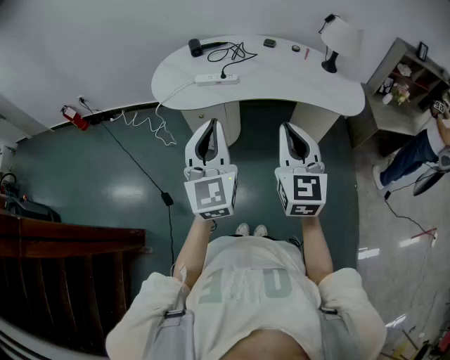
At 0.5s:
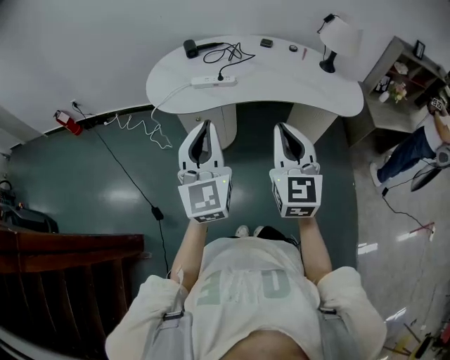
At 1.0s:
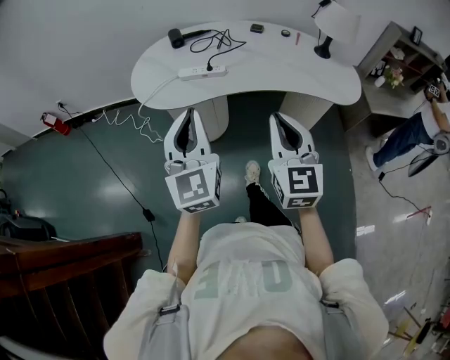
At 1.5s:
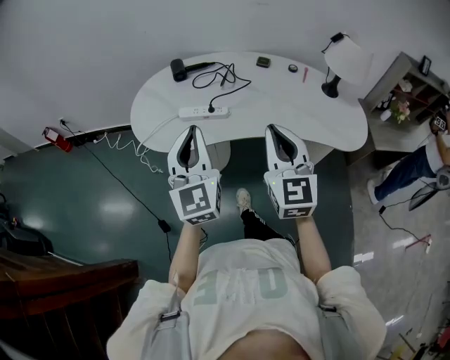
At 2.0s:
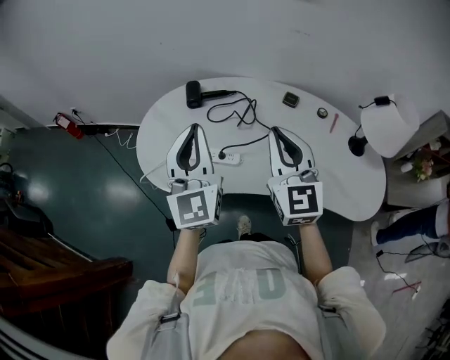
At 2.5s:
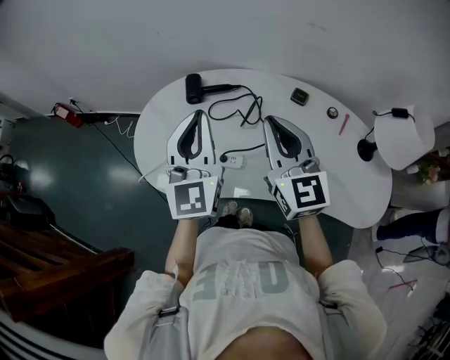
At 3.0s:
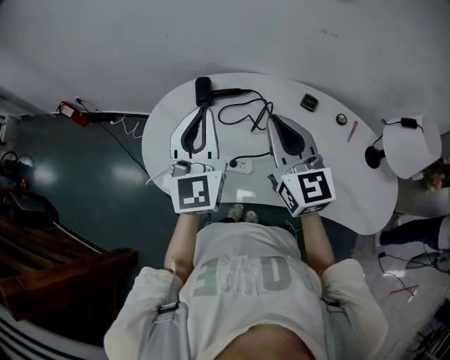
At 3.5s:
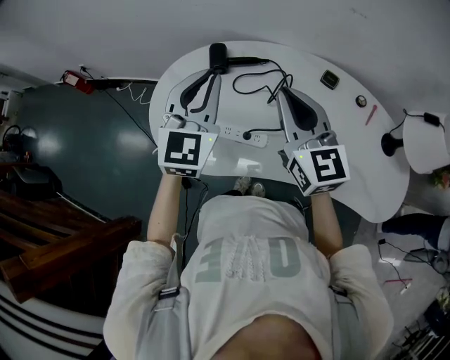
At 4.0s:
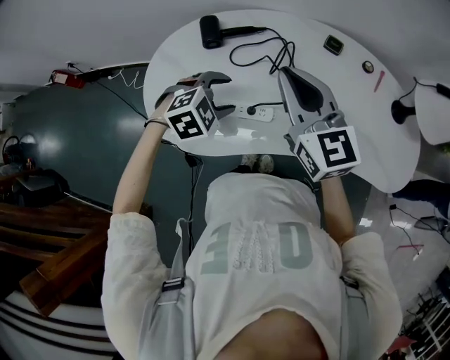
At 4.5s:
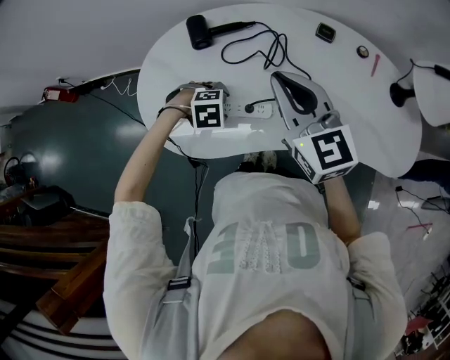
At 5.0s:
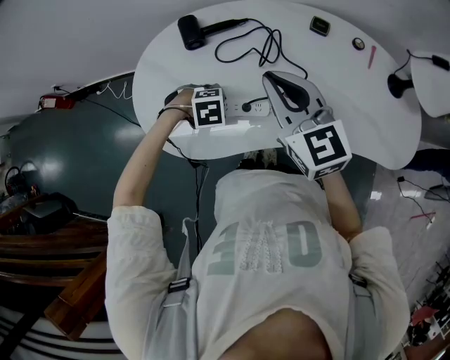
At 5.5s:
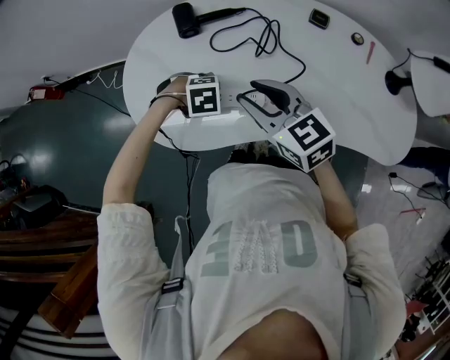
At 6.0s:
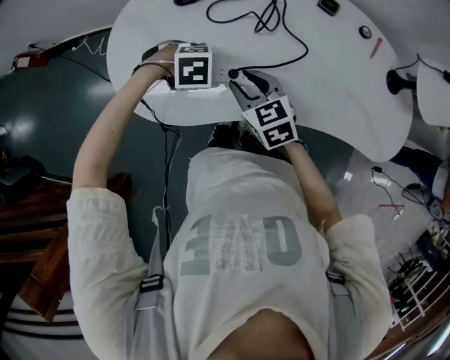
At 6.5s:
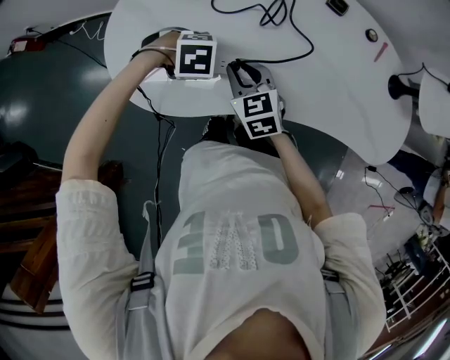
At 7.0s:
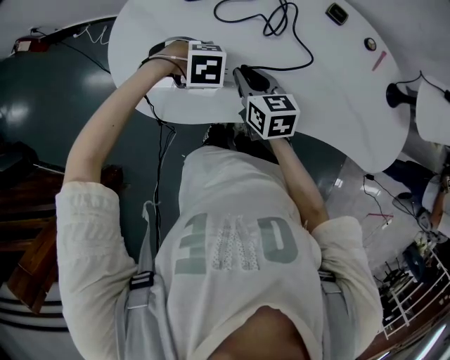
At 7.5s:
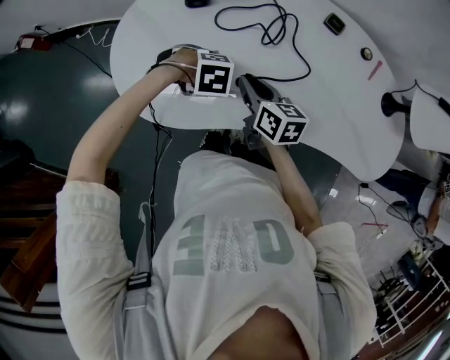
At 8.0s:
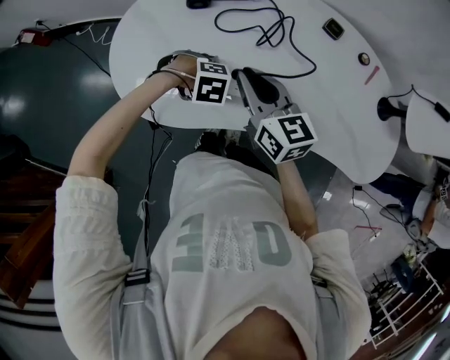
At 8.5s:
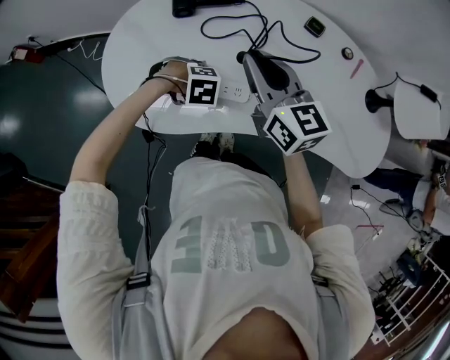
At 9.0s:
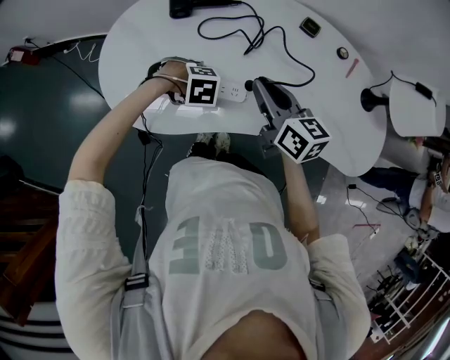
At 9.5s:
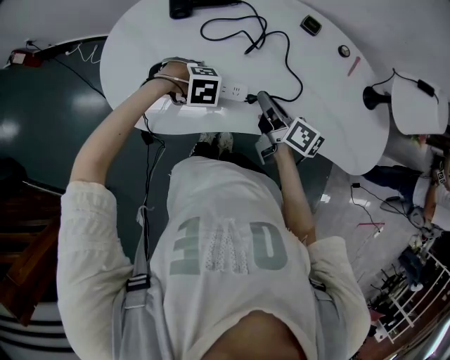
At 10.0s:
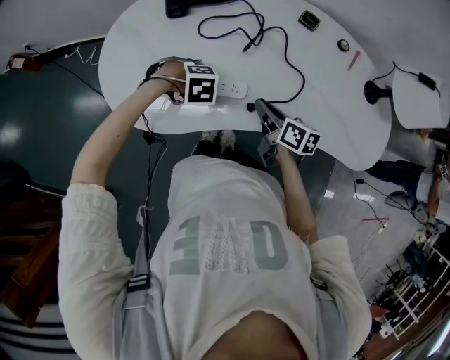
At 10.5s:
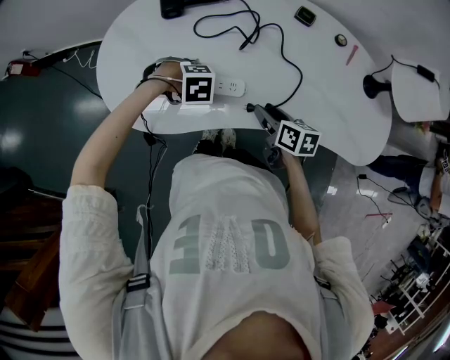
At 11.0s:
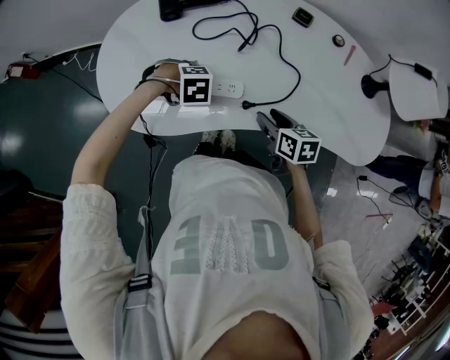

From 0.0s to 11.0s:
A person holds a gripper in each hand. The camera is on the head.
From 0.0s to 2.0s: Both grippers travel together forward, roughly 40 cm.
From 2.0s to 3.5s: The left gripper shifts some 15 cm forward, and swivels about 30 degrees, while the right gripper is displaced forward and to the left by some 10 cm.
From 3.5s to 5.5s: The left gripper moves downward, some 35 cm, points its fingers approximately 70 degrees further downward, and opens its fingers. The right gripper is displaced downward by about 15 cm, changes its angle by some 30 degrees, and opens up.
From 5.5s to 7.5s: The right gripper heads downward, covering about 15 cm, rotates about 40 degrees, and closes up.
From 7.5s to 9.0s: The right gripper heads upward, covering about 10 cm.
From 9.0s to 11.0s: The right gripper heads downward, covering some 15 cm, changes its angle by approximately 30 degrees, and opens up.

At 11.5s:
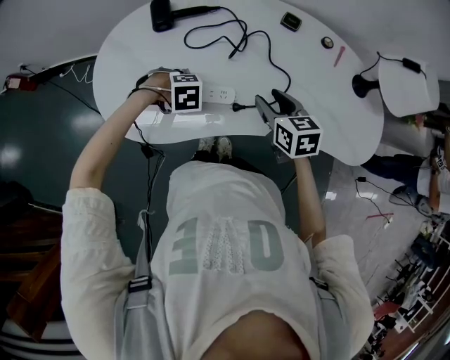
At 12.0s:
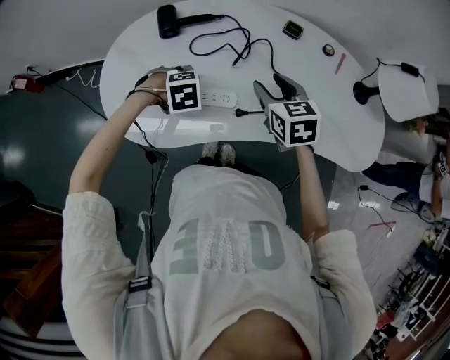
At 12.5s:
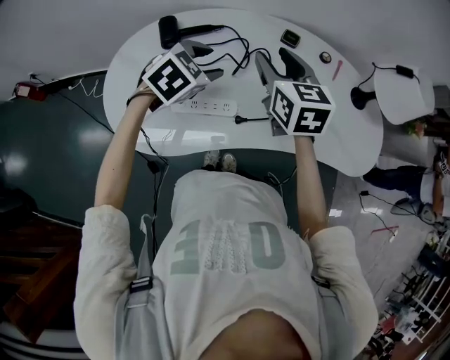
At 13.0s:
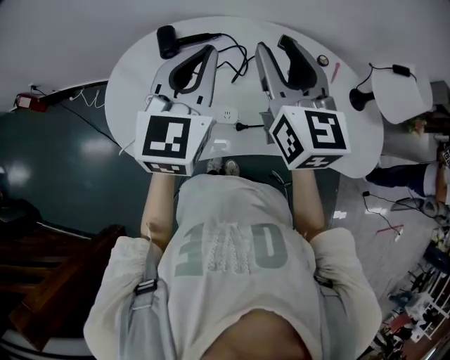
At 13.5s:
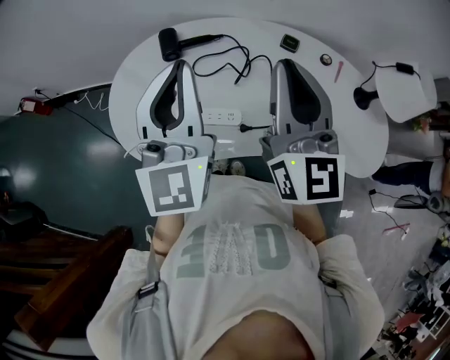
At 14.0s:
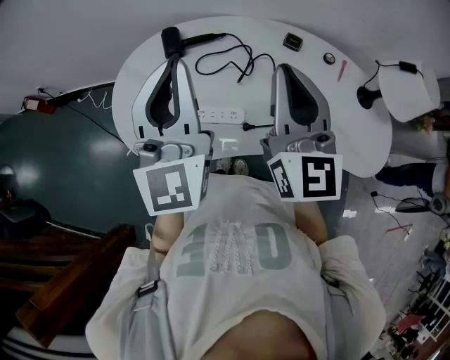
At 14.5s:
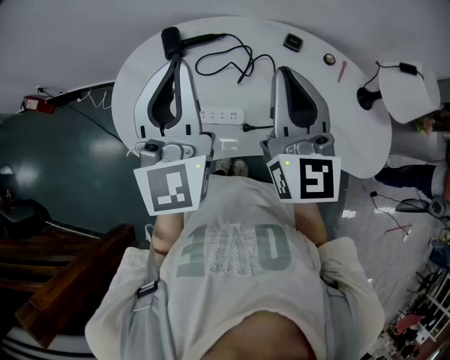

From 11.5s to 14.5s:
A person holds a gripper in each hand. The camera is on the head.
From 11.5s to 13.0s: The two grippers go roughly 30 cm upward. The right gripper angles its fingers upward, by roughly 40 degrees; the left gripper tips its fingers upward by roughly 80 degrees, and closes its fingers.
From 13.0s to 14.5s: The left gripper moves approximately 5 cm, and swivels about 20 degrees, while the right gripper goes some 5 cm backward, and closes its fingers.

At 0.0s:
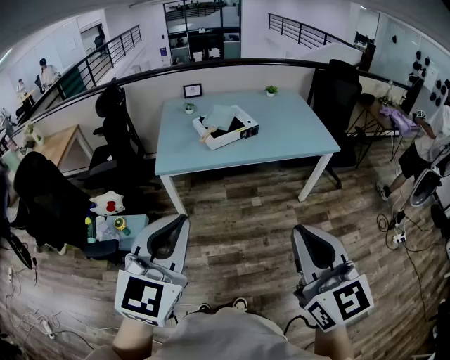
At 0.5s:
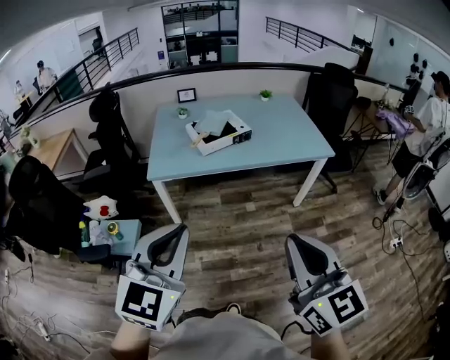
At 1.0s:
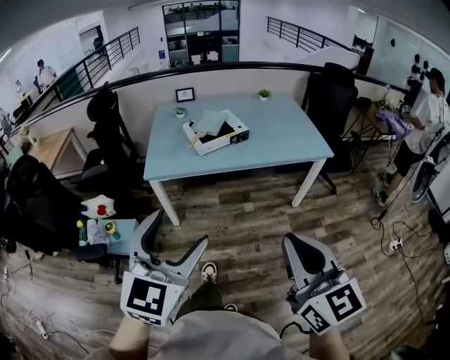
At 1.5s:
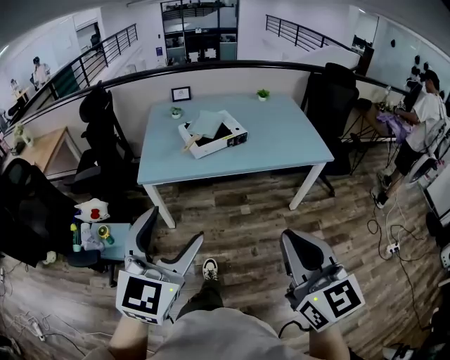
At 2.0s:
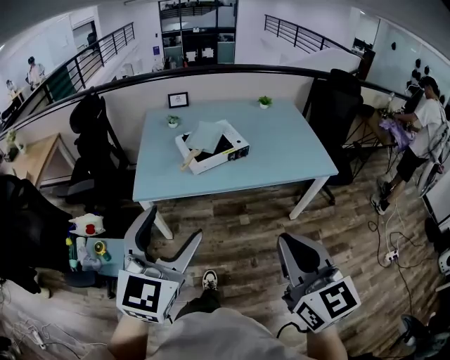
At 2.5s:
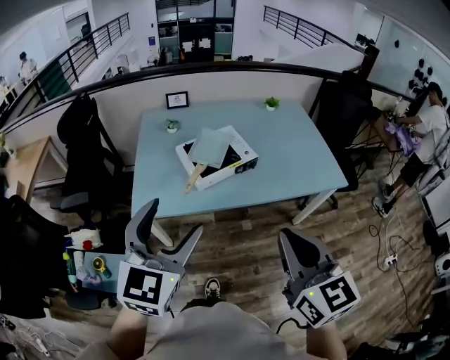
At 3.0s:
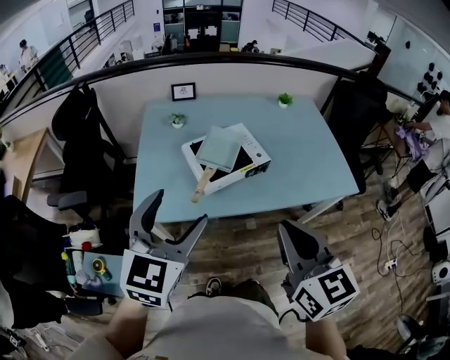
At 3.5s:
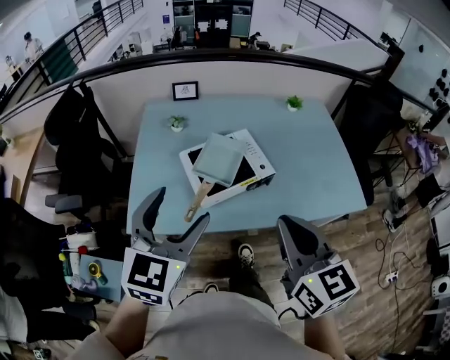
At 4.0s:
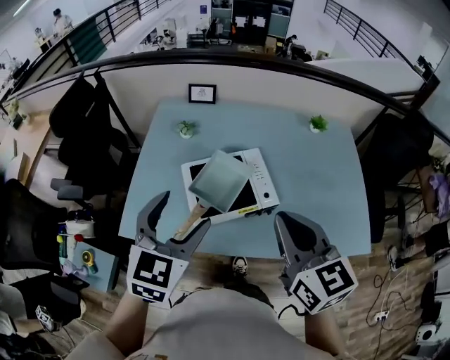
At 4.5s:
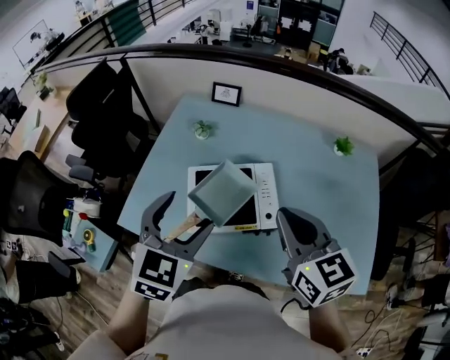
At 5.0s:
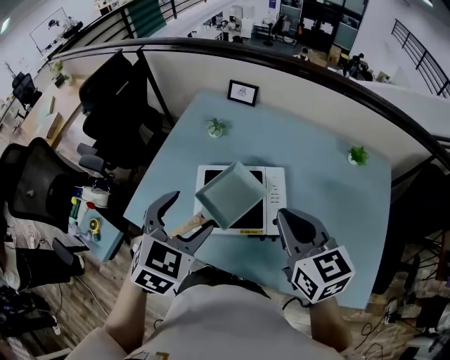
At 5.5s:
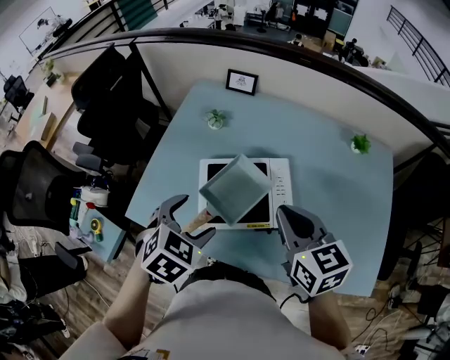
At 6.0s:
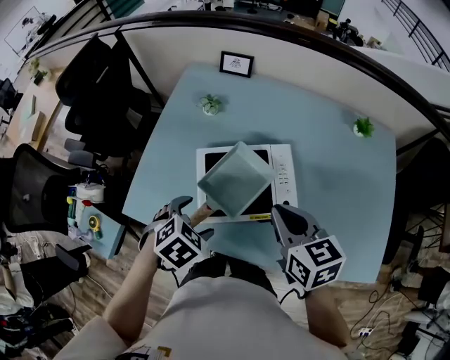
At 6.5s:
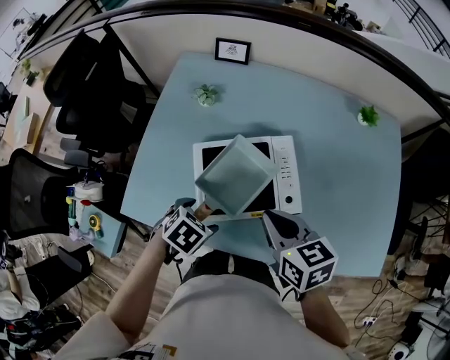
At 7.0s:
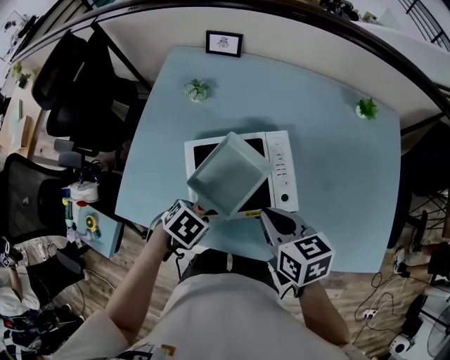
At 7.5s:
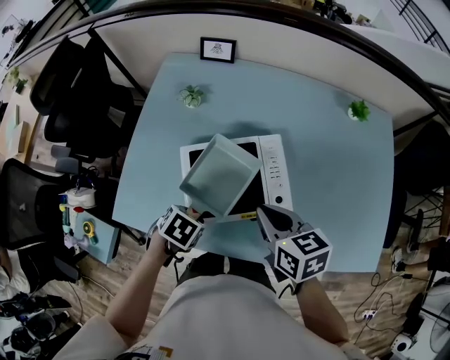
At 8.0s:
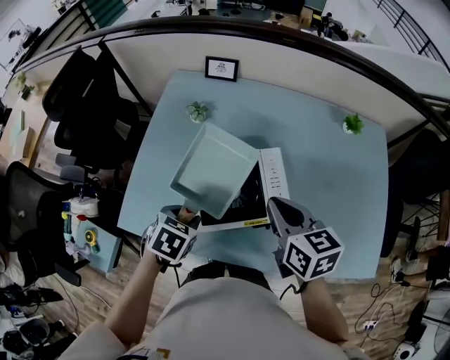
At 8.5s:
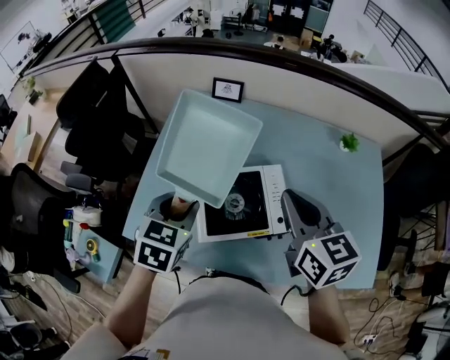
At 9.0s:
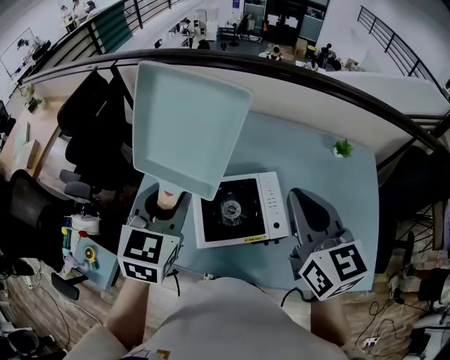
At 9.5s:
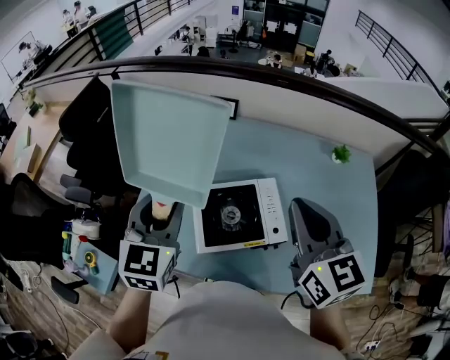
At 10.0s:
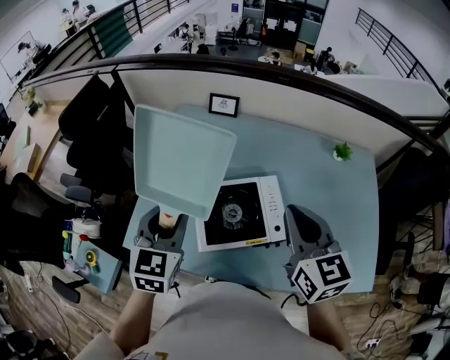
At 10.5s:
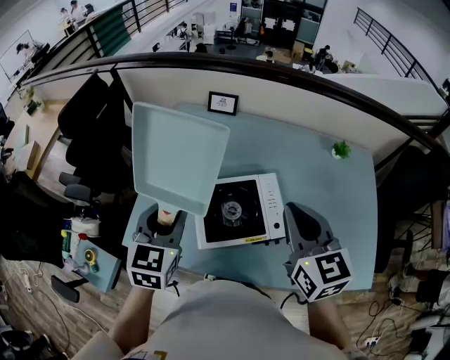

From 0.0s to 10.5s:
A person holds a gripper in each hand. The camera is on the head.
From 0.0s to 2.0s: Both grippers travel together forward, roughly 20 cm. The left gripper opens its fingers.
From 2.0s to 4.0s: The pair of grippers is taken forward, about 50 cm.
From 4.0s to 6.5s: The right gripper moves downward and forward, some 20 cm, and turns by some 30 degrees. Meanwhile the left gripper travels downward by about 30 cm, and angles its fingers downward, by roughly 50 degrees.
From 6.5s to 8.5s: Both grippers travel together upward, approximately 15 cm. The right gripper turns by roughly 20 degrees; the left gripper points its fingers approximately 30 degrees further upward, and closes up.

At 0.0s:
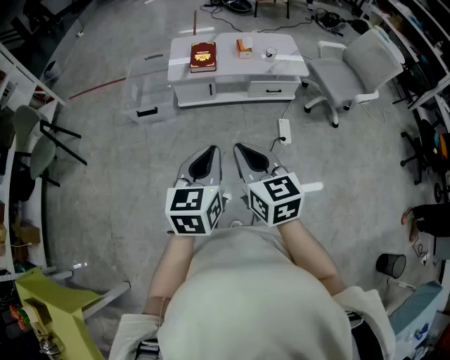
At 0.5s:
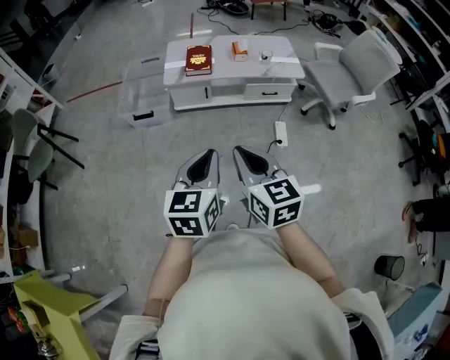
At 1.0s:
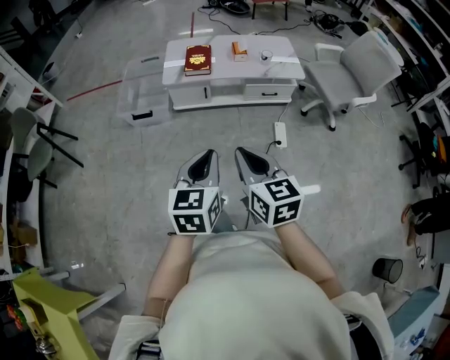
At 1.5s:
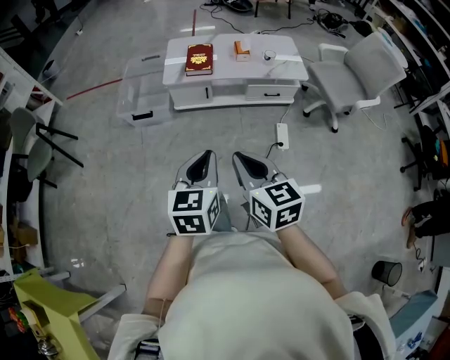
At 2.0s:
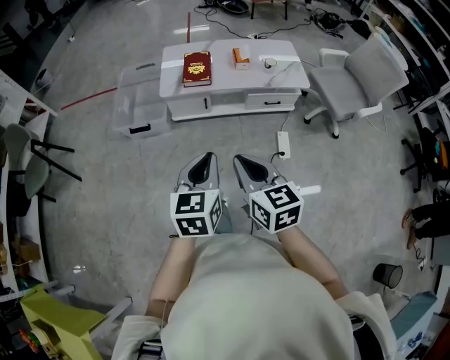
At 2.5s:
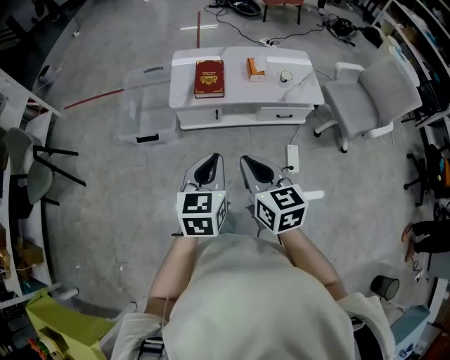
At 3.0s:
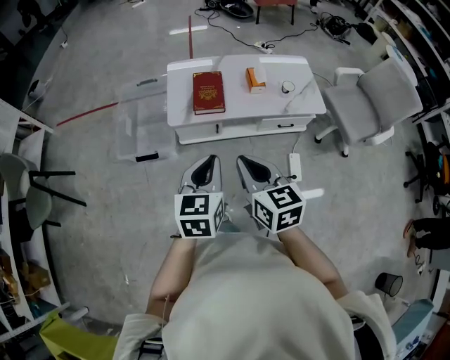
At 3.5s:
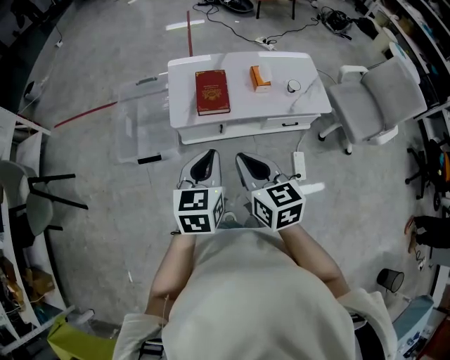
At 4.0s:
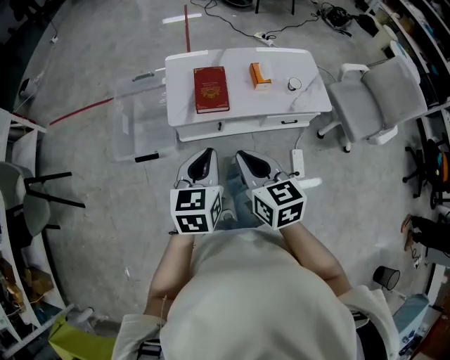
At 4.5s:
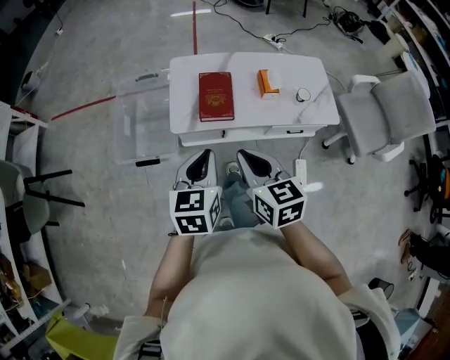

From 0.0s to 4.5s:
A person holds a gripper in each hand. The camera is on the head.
From 0.0s to 2.0s: The grippers both shift forward by approximately 15 cm.
From 2.0s to 4.5s: Both grippers move forward, approximately 40 cm.
